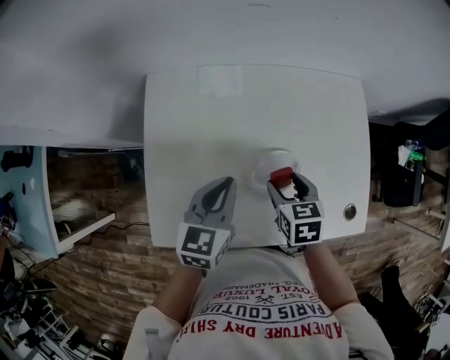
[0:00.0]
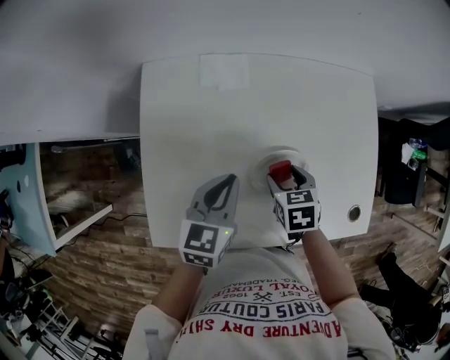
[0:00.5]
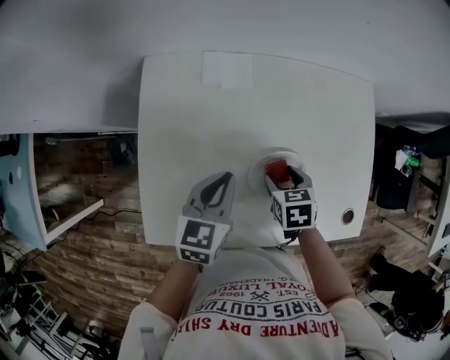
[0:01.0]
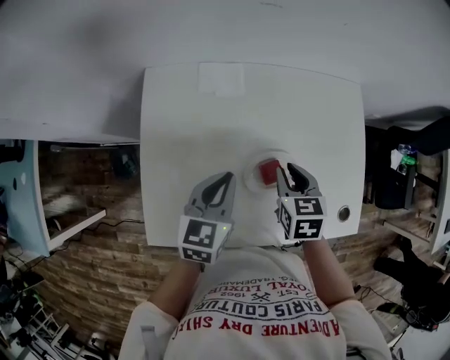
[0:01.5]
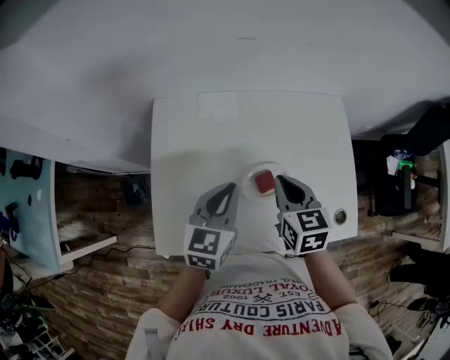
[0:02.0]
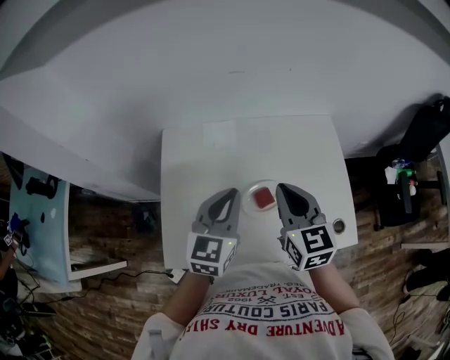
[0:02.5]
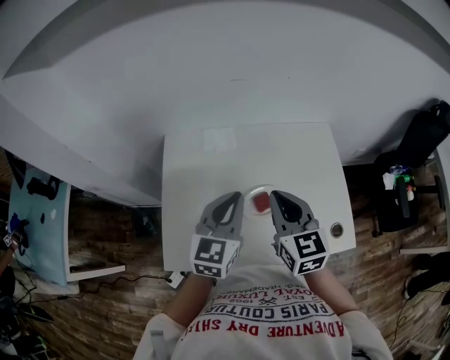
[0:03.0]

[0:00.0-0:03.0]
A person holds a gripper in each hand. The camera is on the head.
0.0 to 1.5 s: The right gripper reaches about 5 cm downward, then returns, and closes.
1.5 to 3.0 s: Both grippers move upward, some 15 cm. The right gripper tilts its fingers about 30 degrees upward; the left gripper turns by some 20 degrees.

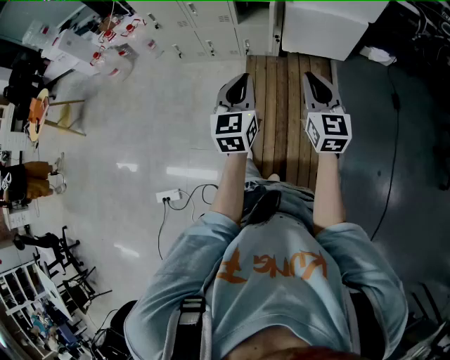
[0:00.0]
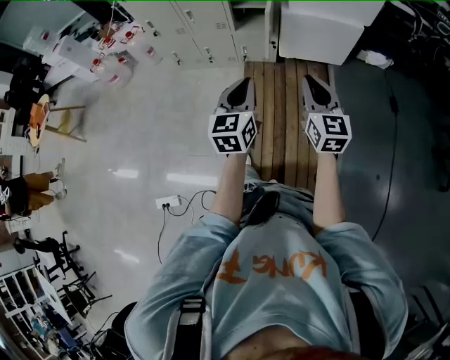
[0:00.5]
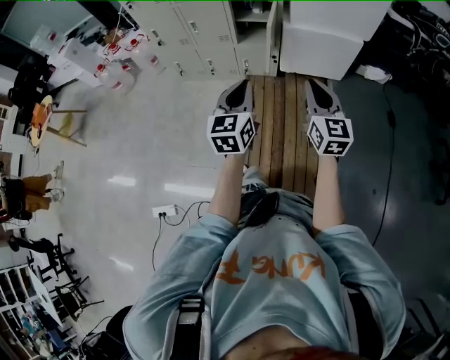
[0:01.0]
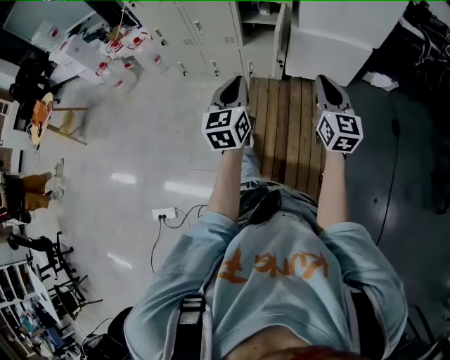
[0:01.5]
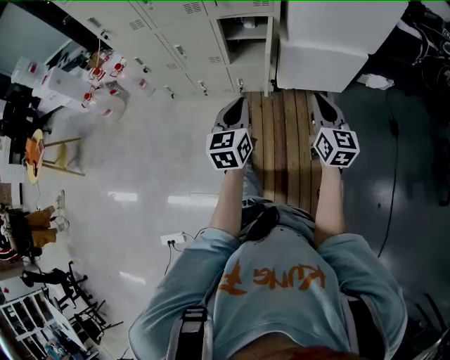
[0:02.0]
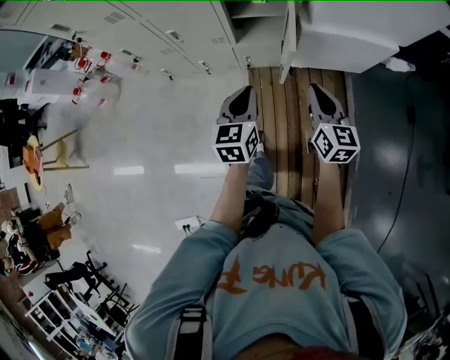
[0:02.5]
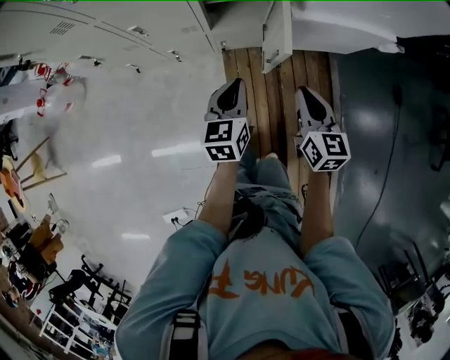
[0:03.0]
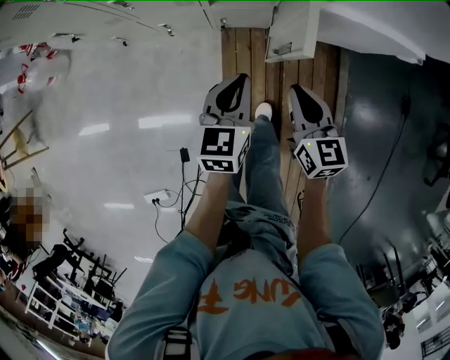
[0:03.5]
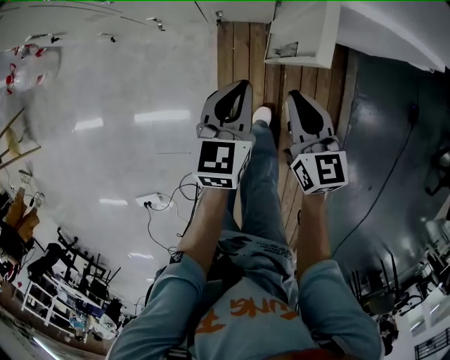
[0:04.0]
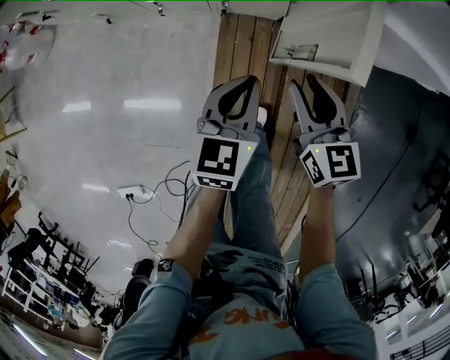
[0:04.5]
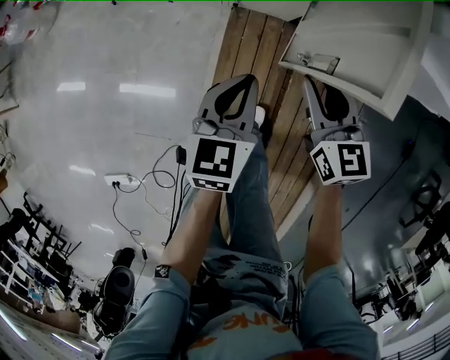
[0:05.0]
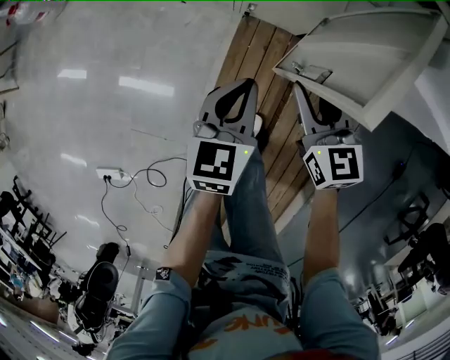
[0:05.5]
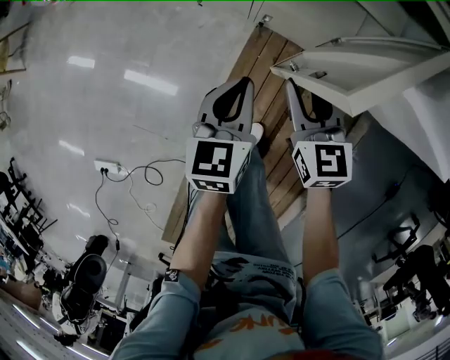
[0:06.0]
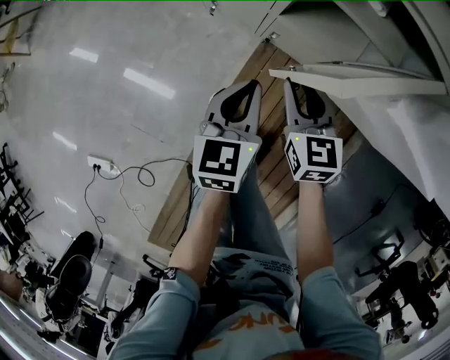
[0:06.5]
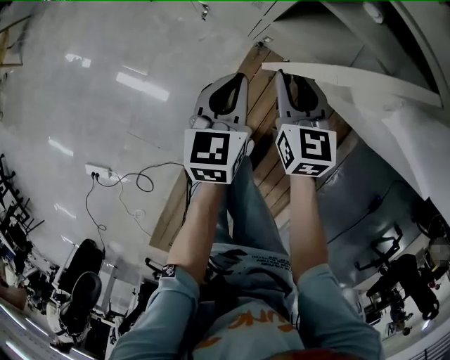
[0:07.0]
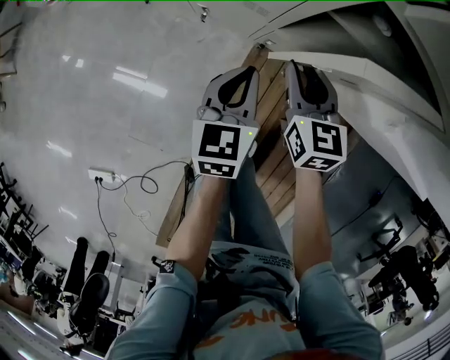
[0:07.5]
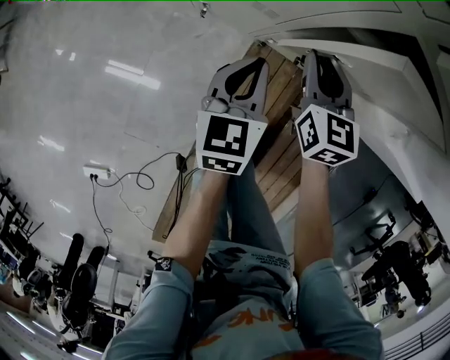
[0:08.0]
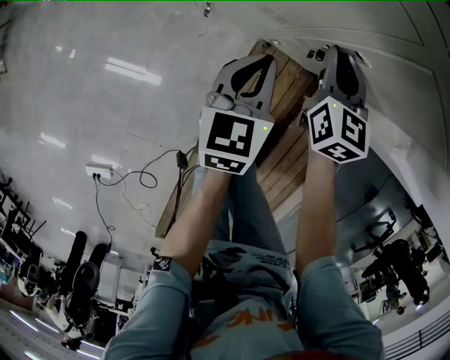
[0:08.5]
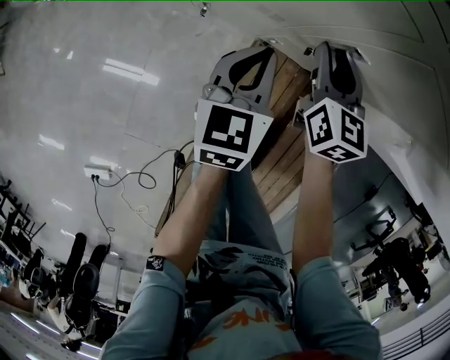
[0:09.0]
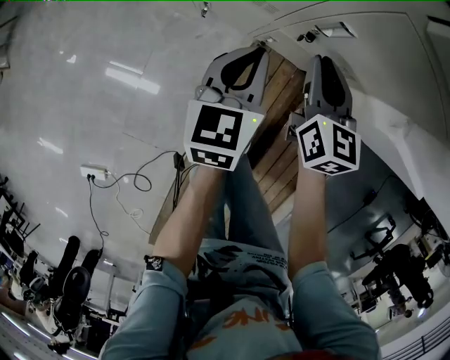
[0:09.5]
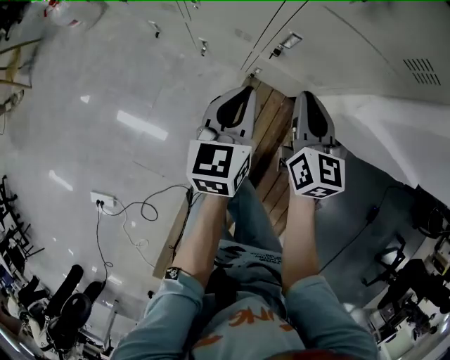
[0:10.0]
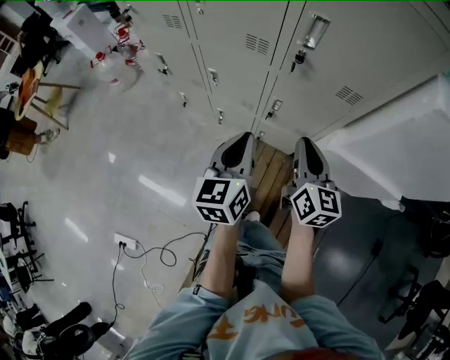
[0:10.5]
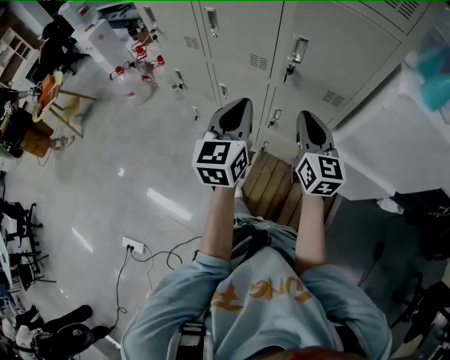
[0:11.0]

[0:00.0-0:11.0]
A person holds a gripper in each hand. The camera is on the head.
0.0 to 2.0 s: The two grippers go approximately 20 cm forward.
2.0 to 3.5 s: The left gripper travels forward and downward by approximately 30 cm; the right gripper travels downward, forward and to the left by some 30 cm, and turns by approximately 20 degrees.
3.5 to 5.5 s: The left gripper heads downward, covering approximately 15 cm. The right gripper heads downward and forward, covering approximately 15 cm, swivels roughly 20 degrees, and opens up.
5.5 to 7.5 s: Both grippers move forward and to the left, some 20 cm.
7.5 to 9.0 s: Both grippers travel together forward, roughly 5 cm.
9.0 to 11.0 s: The right gripper goes some 40 cm upward and backward, and turns by approximately 30 degrees; the left gripper shifts approximately 40 cm upward, and turns by some 30 degrees.

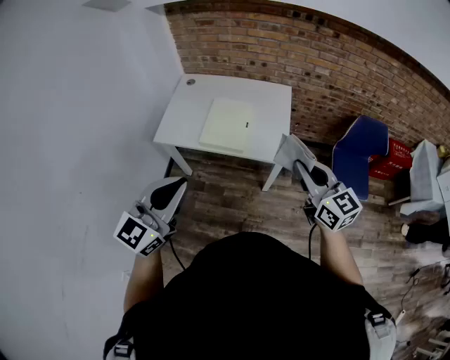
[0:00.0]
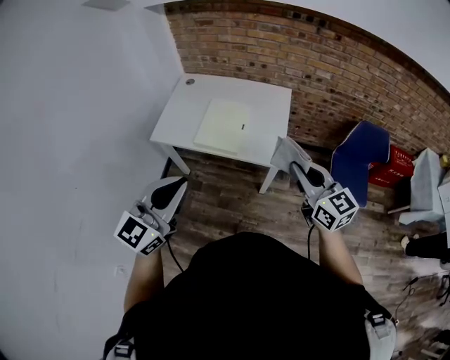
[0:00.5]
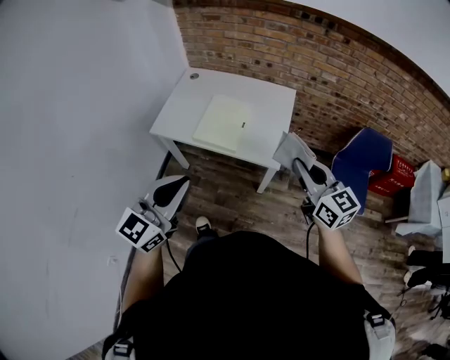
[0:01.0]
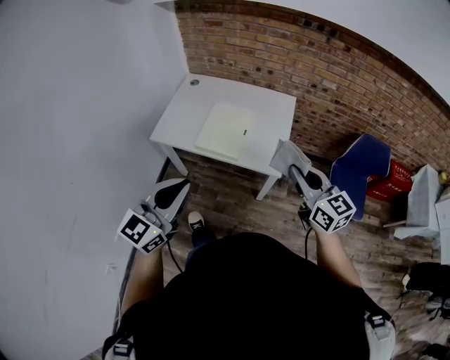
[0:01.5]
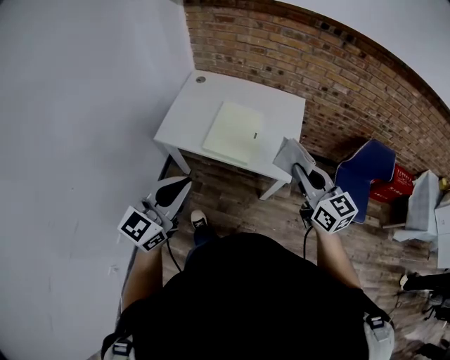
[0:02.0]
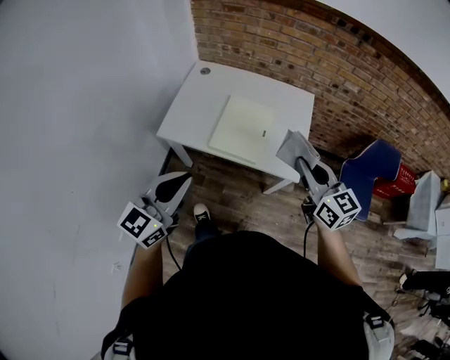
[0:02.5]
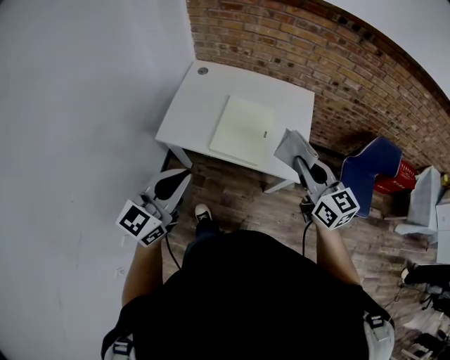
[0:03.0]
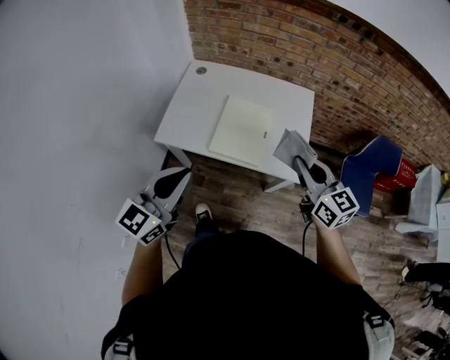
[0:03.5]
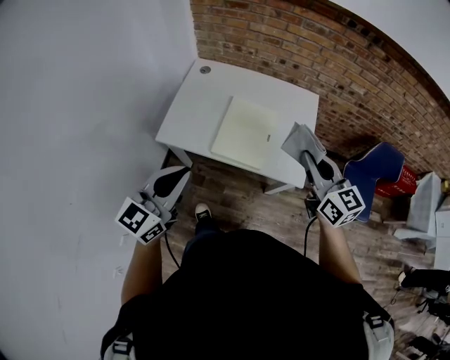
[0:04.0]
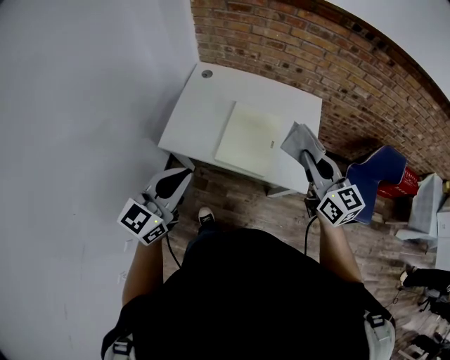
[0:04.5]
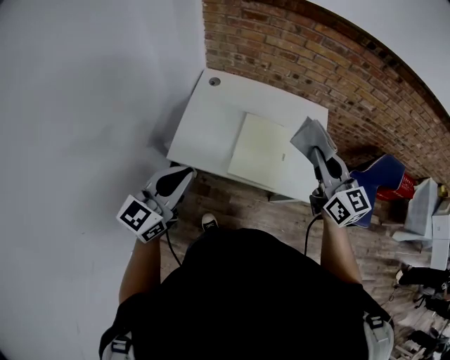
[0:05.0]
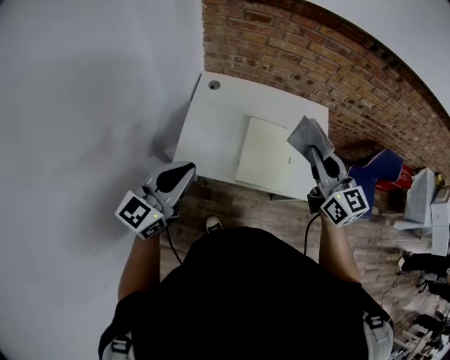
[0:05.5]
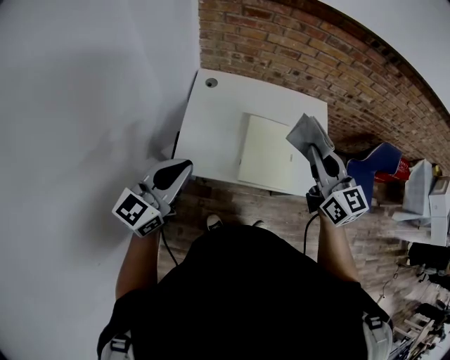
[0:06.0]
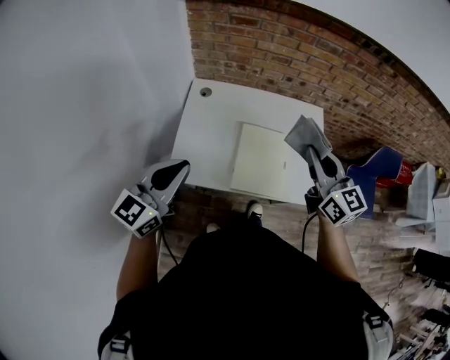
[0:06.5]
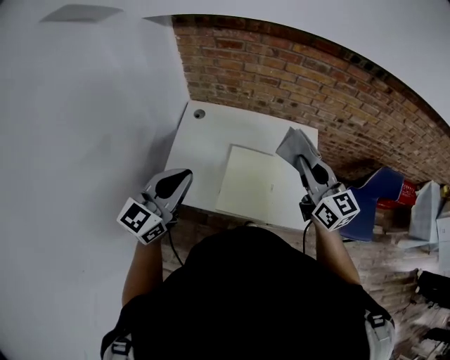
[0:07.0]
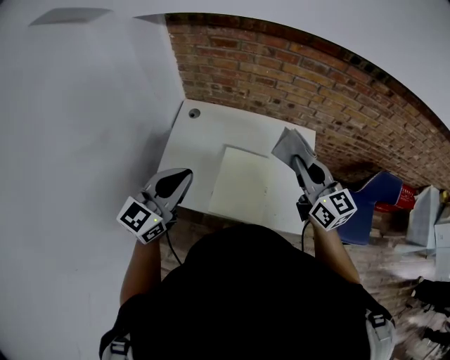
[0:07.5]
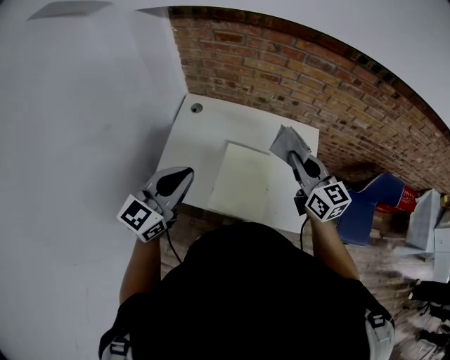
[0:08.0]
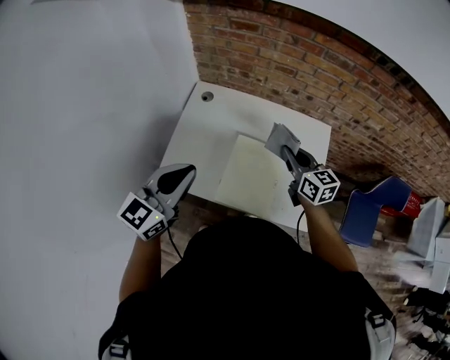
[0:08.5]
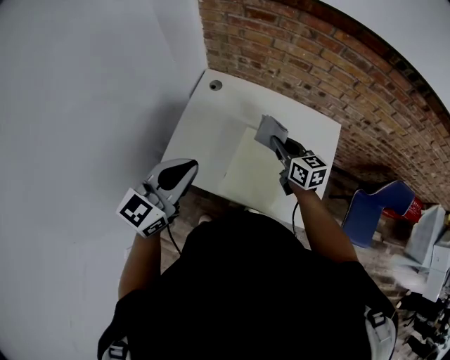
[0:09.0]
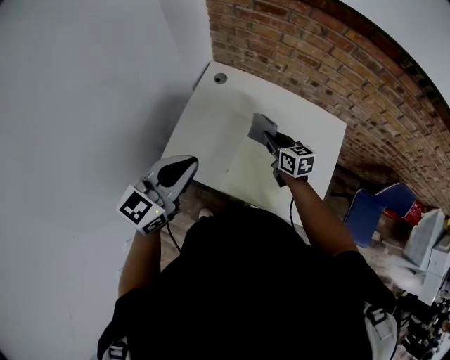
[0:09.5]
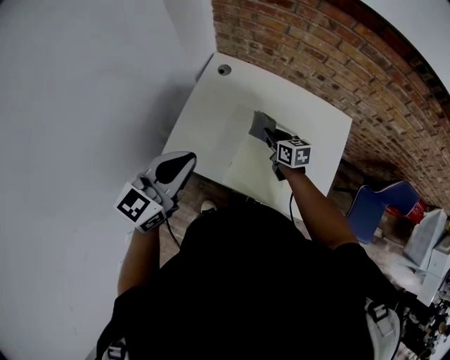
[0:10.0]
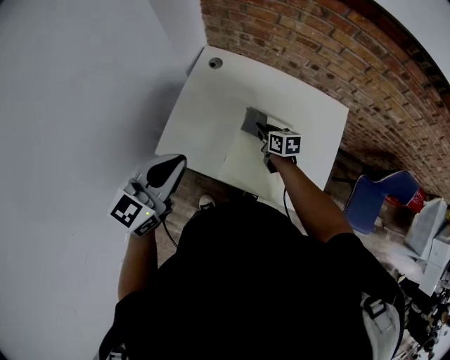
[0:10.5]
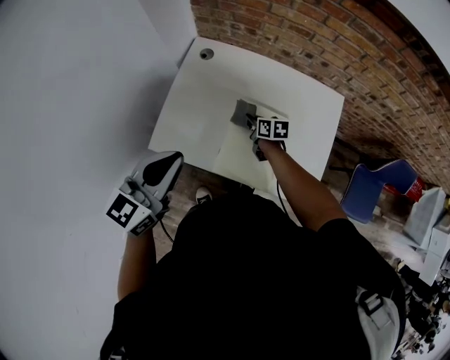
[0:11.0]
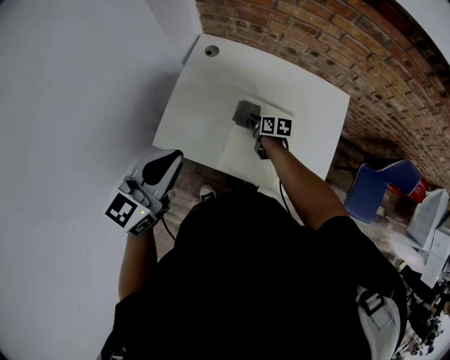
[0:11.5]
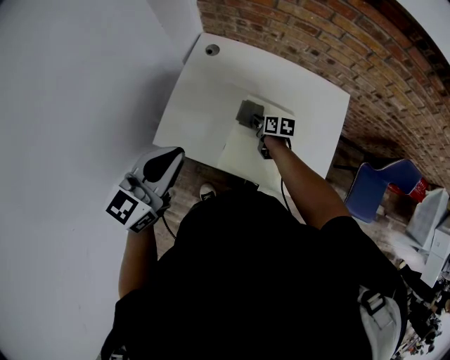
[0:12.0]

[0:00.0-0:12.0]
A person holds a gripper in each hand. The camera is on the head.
0.0 to 2.0 s: The right gripper shifts about 10 cm forward; the left gripper heads forward and downward, covering some 10 cm, and travels to the right and back again, some 5 cm each way.
2.0 to 4.0 s: Both grippers move forward and to the left, about 15 cm.
4.0 to 6.0 s: Both grippers travel together to the left and forward, roughly 20 cm.
6.0 to 8.0 s: The right gripper travels forward, to the right and downward by about 20 cm. The left gripper heads to the right and forward, covering about 15 cm.
8.0 to 10.0 s: The right gripper travels downward and to the left by roughly 30 cm, and changes its angle by roughly 30 degrees; the left gripper moves to the left, approximately 5 cm.
10.0 to 12.0 s: The right gripper travels downward by approximately 10 cm, and changes its angle by about 20 degrees.

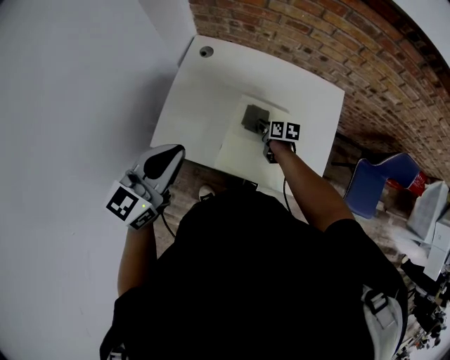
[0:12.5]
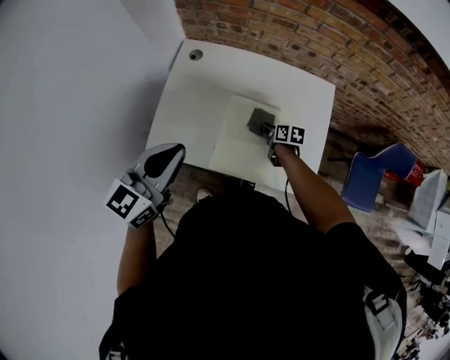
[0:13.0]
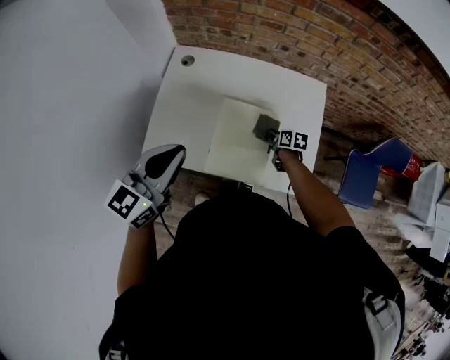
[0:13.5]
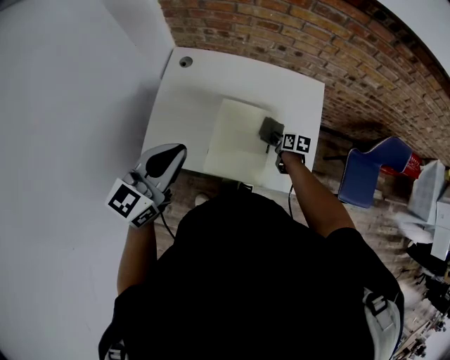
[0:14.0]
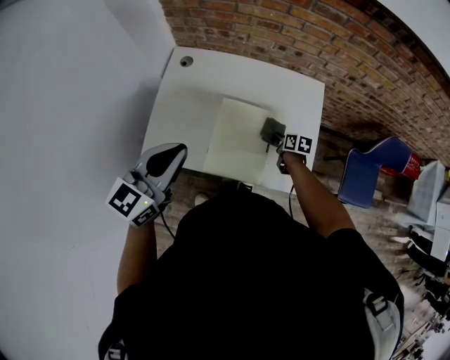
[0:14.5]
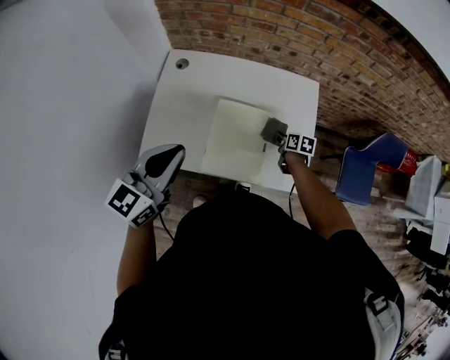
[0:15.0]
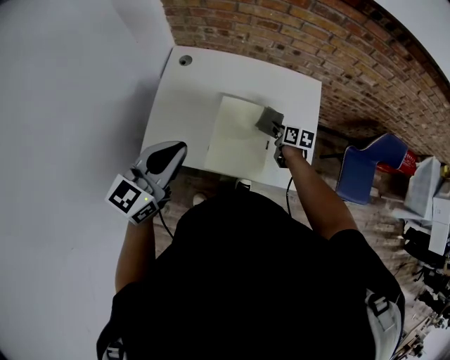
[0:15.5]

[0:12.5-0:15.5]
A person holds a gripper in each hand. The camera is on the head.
12.5 to 14.0 s: The right gripper moves to the right, about 15 cm.
14.0 to 15.5 s: The right gripper goes about 5 cm upward.
